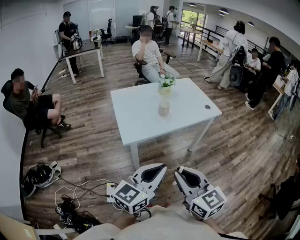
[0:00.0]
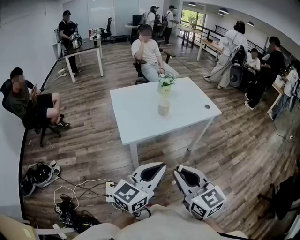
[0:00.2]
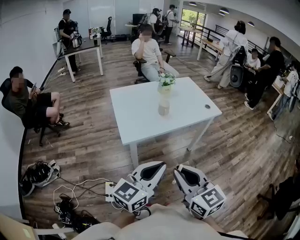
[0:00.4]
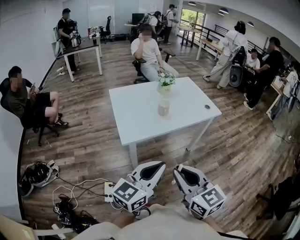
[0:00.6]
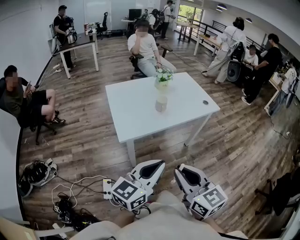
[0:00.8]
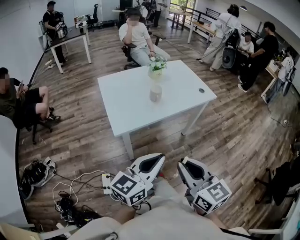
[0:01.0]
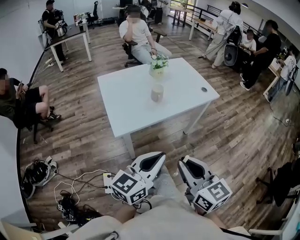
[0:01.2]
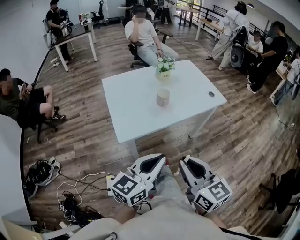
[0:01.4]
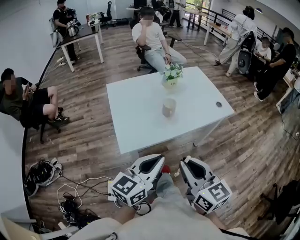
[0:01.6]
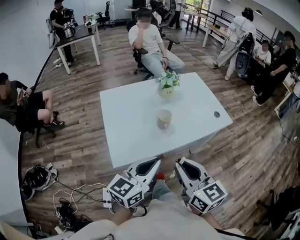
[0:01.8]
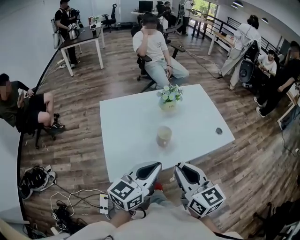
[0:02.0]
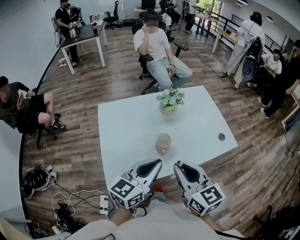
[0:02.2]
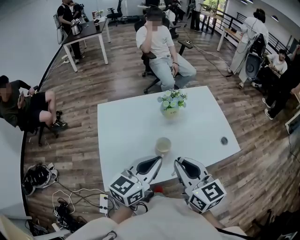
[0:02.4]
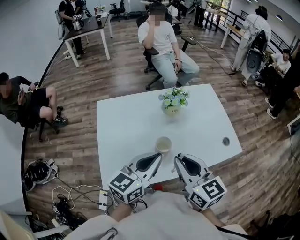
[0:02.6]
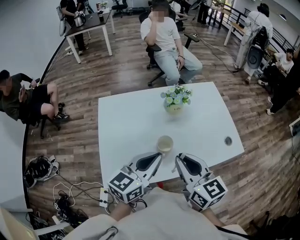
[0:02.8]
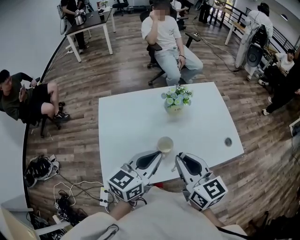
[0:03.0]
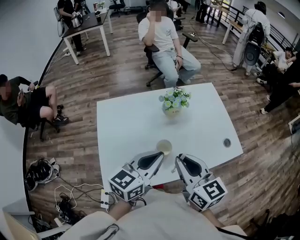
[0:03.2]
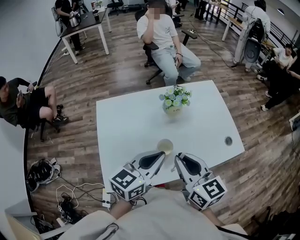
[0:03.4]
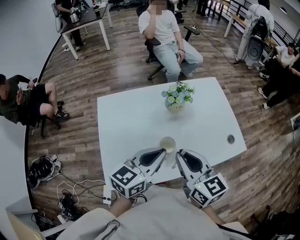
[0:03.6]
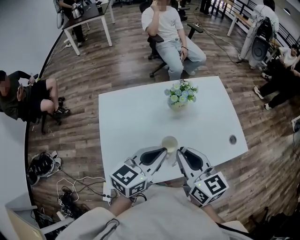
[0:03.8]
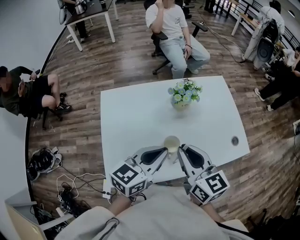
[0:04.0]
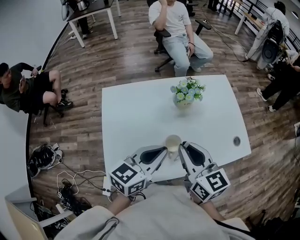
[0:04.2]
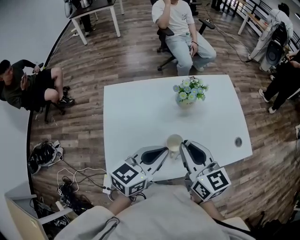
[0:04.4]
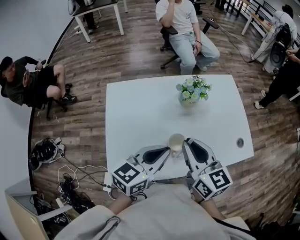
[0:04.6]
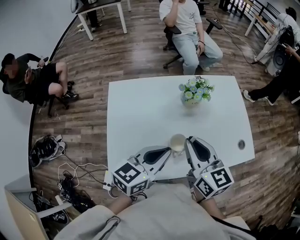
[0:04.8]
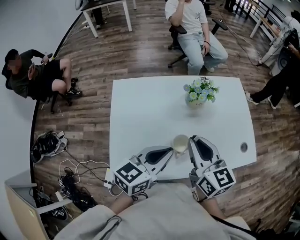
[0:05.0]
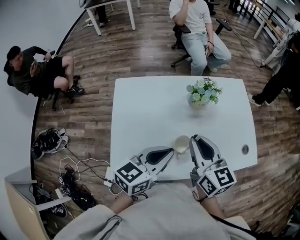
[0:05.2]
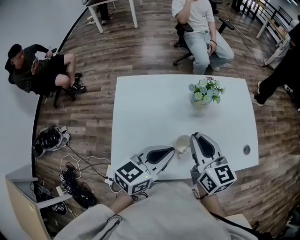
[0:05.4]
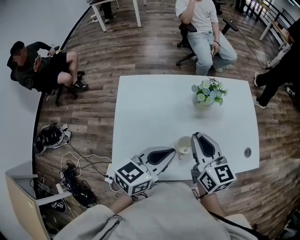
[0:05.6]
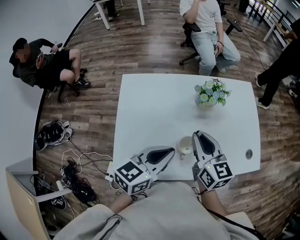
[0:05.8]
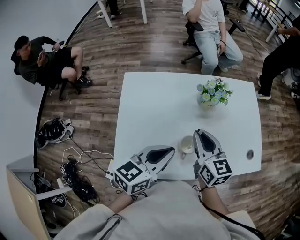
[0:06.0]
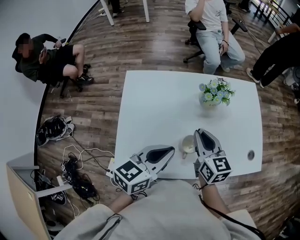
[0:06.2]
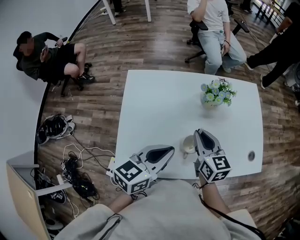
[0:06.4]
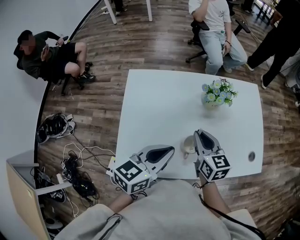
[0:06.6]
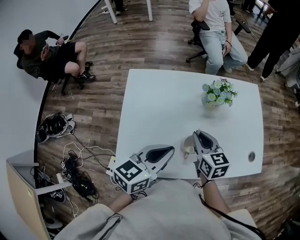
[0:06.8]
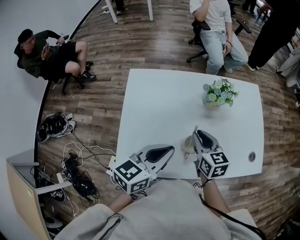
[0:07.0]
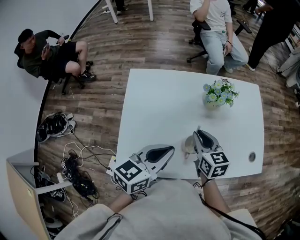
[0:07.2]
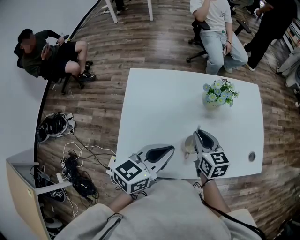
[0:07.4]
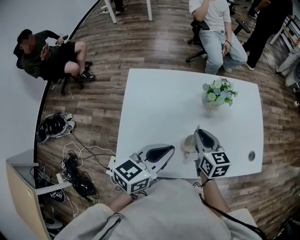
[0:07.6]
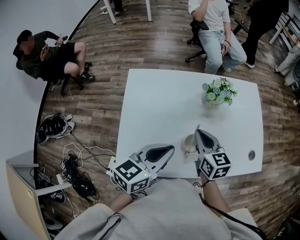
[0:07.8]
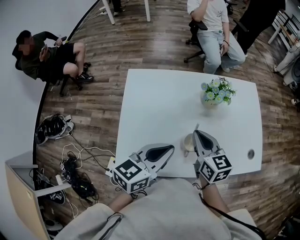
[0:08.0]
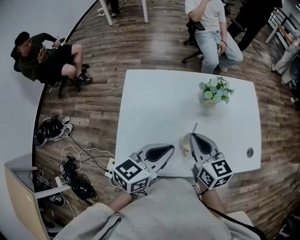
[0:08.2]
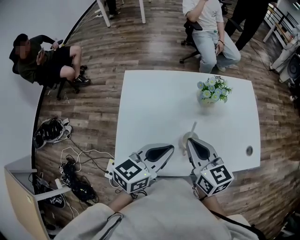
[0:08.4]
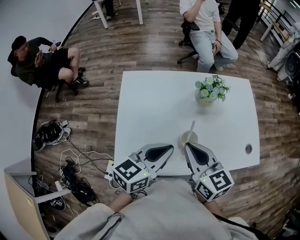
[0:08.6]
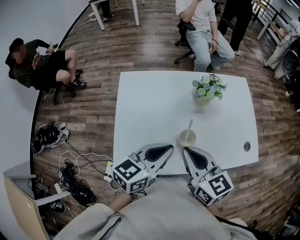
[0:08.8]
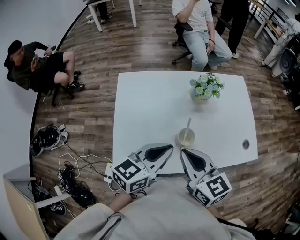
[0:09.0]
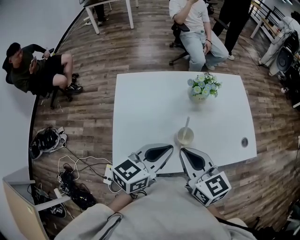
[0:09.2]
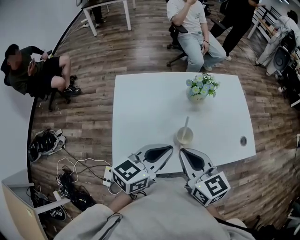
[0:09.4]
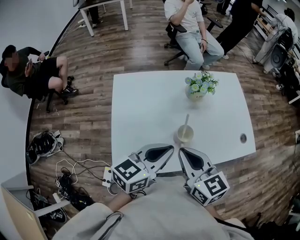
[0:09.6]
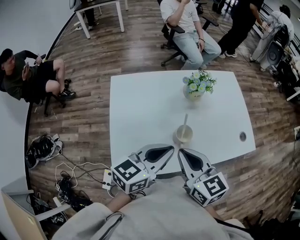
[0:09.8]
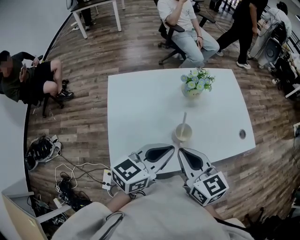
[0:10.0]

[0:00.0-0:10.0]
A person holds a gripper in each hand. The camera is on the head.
0:00.0 to 0:01.4: The grippers both shift forward by about 10 cm.
0:01.4 to 0:02.8: The grippers both shift forward by roughly 35 cm.
0:02.8 to 0:04.2: The right gripper shifts roughly 5 cm forward.
0:04.2 to 0:05.8: The right gripper is displaced forward and downward by some 10 cm.
0:05.8 to 0:07.2: The right gripper goes some 10 cm downward.
0:07.2 to 0:08.6: The right gripper shifts some 15 cm upward and backward.
0:08.6 to 0:10.0: There are only small adjustments of the grippers.

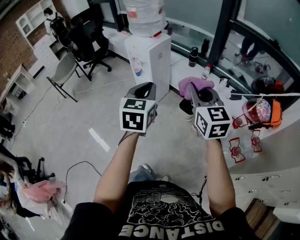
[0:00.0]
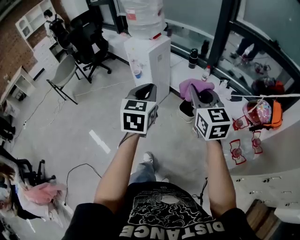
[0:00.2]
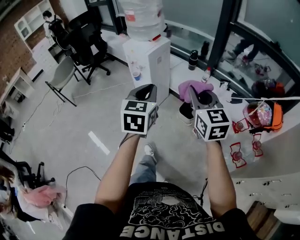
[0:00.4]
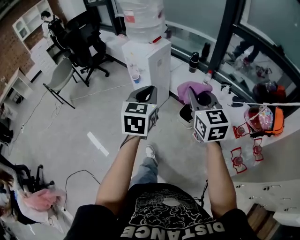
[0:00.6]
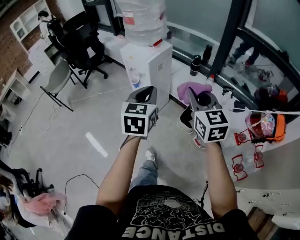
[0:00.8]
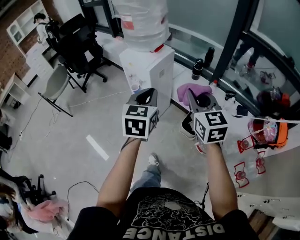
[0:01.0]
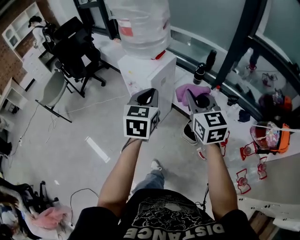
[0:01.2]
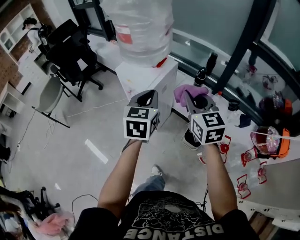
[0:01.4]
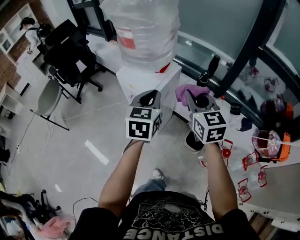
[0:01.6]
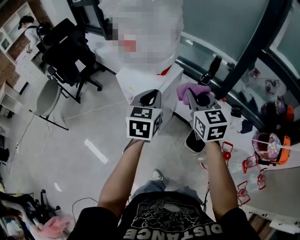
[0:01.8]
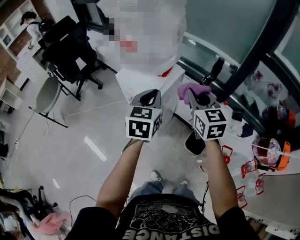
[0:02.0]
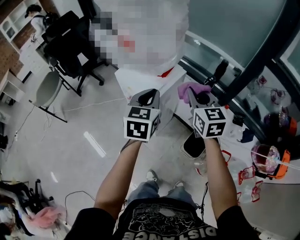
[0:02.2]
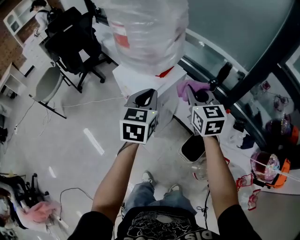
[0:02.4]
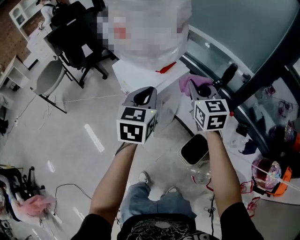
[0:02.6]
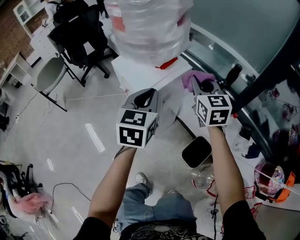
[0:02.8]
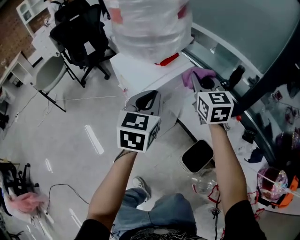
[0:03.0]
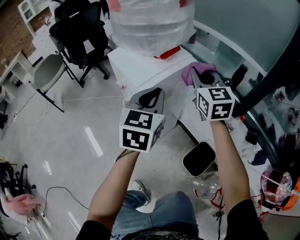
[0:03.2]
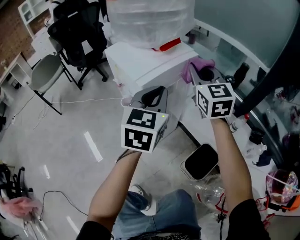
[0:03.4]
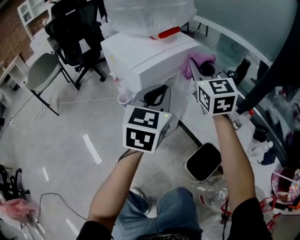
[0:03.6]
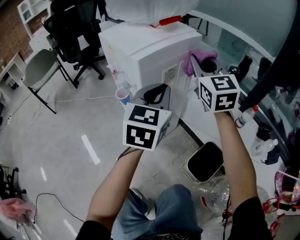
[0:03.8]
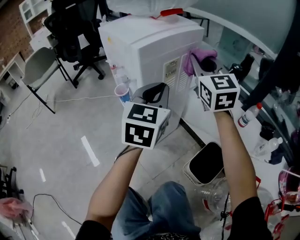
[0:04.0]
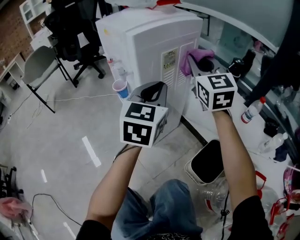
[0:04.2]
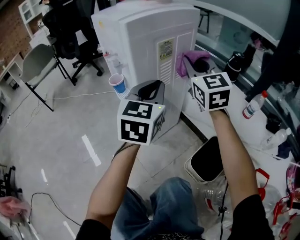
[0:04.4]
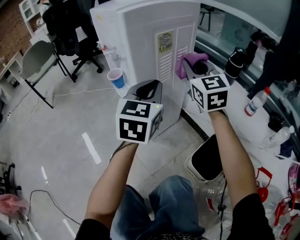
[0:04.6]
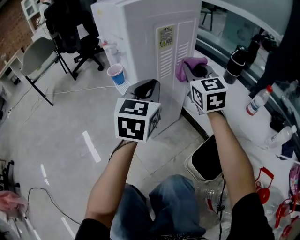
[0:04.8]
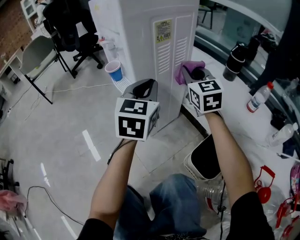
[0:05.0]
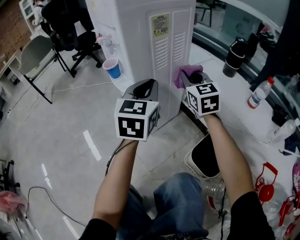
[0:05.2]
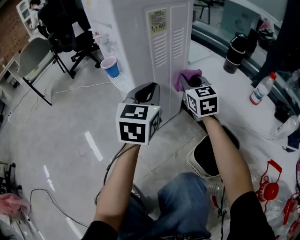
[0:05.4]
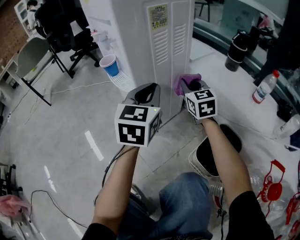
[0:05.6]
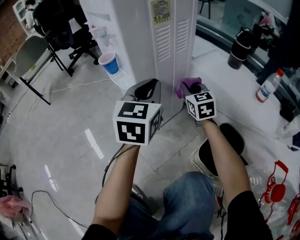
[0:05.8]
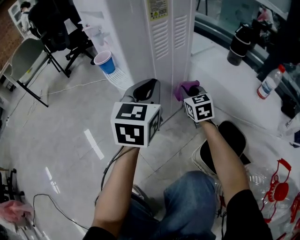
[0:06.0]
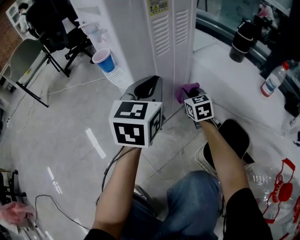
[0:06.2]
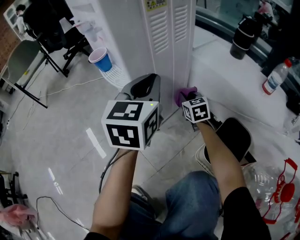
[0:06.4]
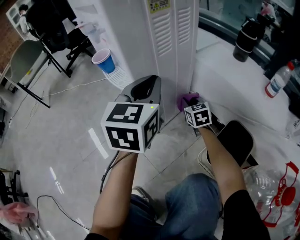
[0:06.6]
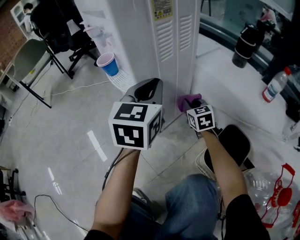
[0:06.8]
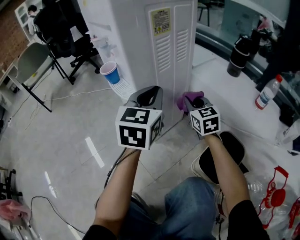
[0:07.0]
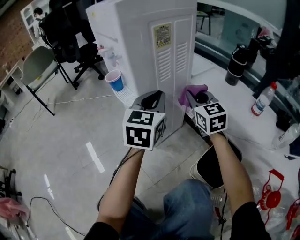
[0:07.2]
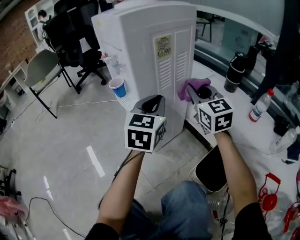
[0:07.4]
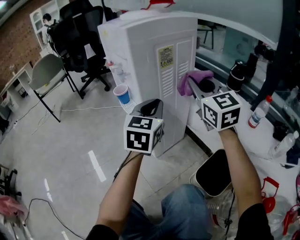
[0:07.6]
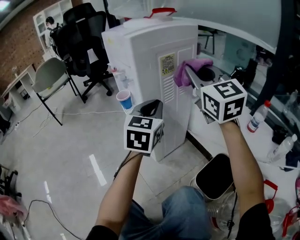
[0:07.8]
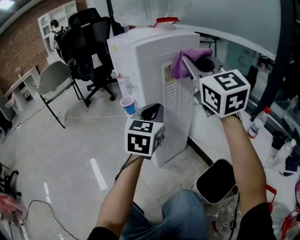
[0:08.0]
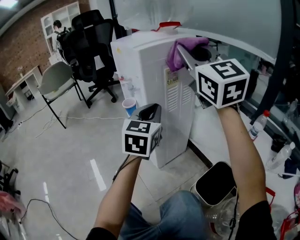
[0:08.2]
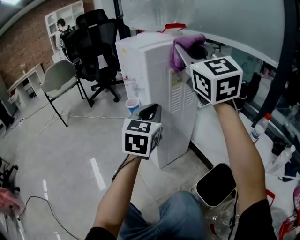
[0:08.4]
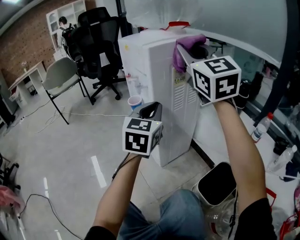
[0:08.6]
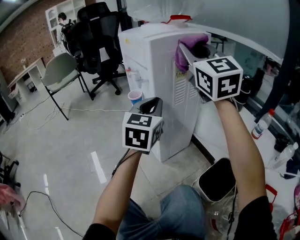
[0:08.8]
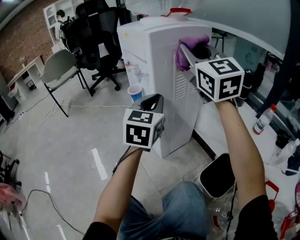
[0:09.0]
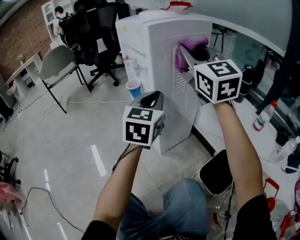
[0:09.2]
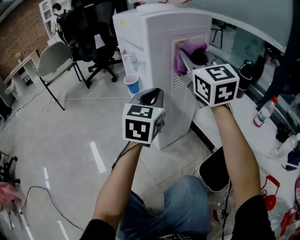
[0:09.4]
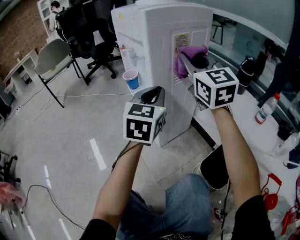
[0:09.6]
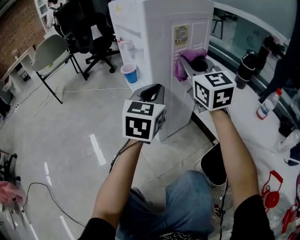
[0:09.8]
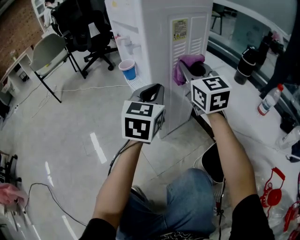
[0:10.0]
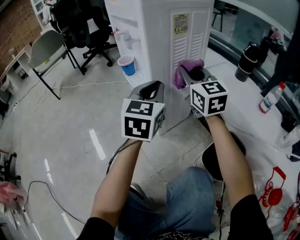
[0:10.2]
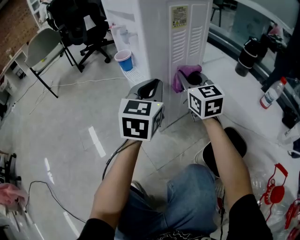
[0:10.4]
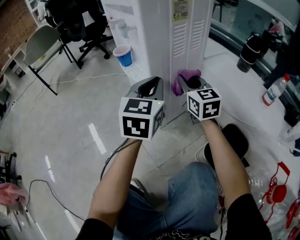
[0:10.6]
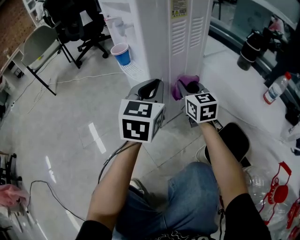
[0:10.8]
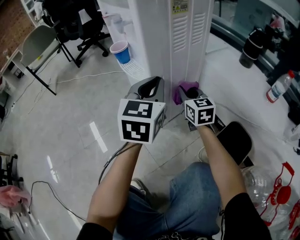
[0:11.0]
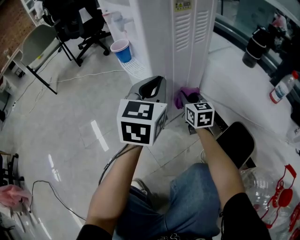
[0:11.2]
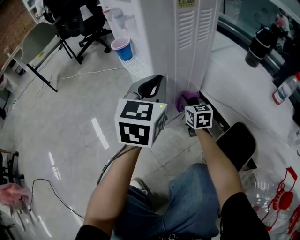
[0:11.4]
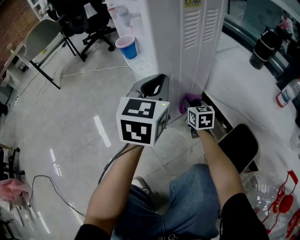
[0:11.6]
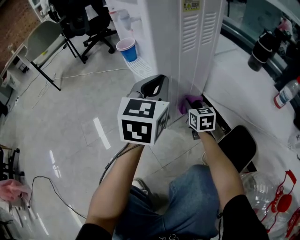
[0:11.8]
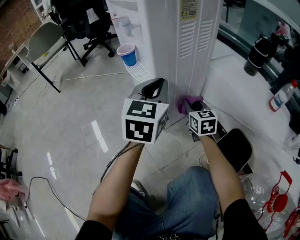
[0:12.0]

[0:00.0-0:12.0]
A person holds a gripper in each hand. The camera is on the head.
0:00.0 to 0:01.6: The two grippers go approximately 40 cm forward.
0:01.6 to 0:03.0: The right gripper shifts roughly 20 cm forward and downward, while the left gripper shifts approximately 15 cm downward and forward.
0:03.0 to 0:04.4: Both grippers move downward, some 20 cm.
0:04.4 to 0:06.0: The left gripper goes roughly 15 cm downward. Meanwhile the right gripper heads downward, covering approximately 30 cm, and rotates roughly 20 degrees.
0:06.0 to 0:07.6: The right gripper moves upward, some 30 cm, and rotates approximately 20 degrees; the left gripper shifts roughly 5 cm upward.
0:07.6 to 0:09.0: The left gripper changes place by some 5 cm. Meanwhile the right gripper is displaced upward and to the left by roughly 15 cm.
0:09.0 to 0:10.4: The right gripper is displaced downward by about 30 cm, and turns by roughly 20 degrees. The left gripper travels downward by some 10 cm.
0:10.4 to 0:12.0: The right gripper travels downward by some 20 cm.

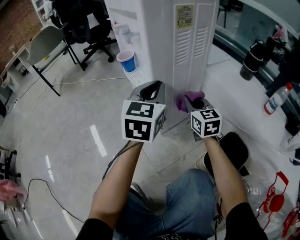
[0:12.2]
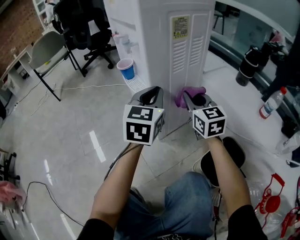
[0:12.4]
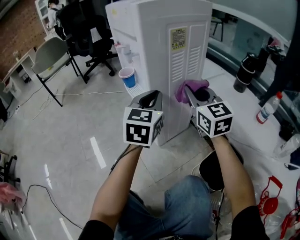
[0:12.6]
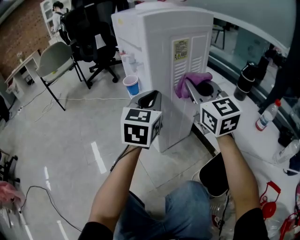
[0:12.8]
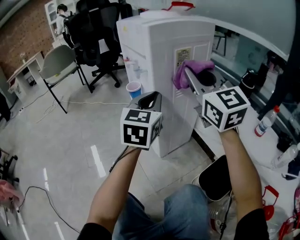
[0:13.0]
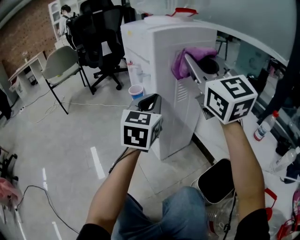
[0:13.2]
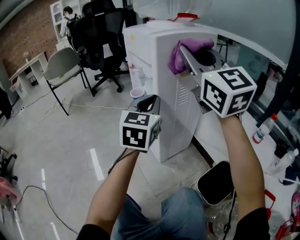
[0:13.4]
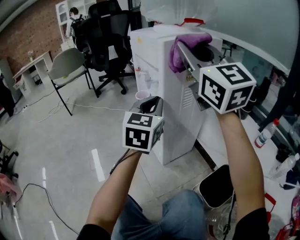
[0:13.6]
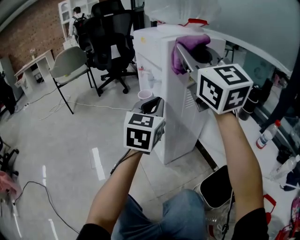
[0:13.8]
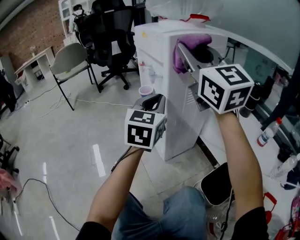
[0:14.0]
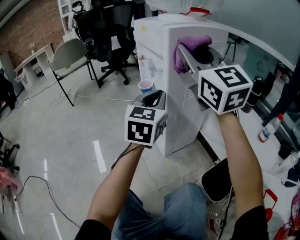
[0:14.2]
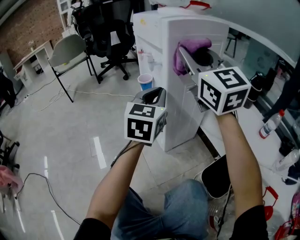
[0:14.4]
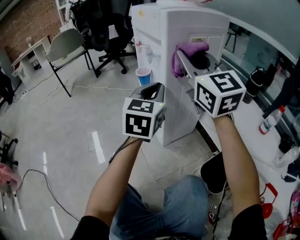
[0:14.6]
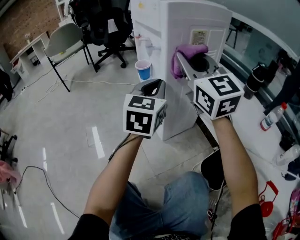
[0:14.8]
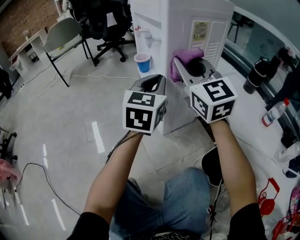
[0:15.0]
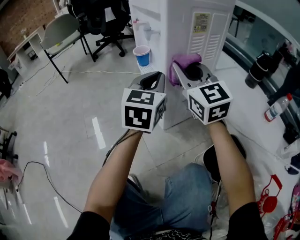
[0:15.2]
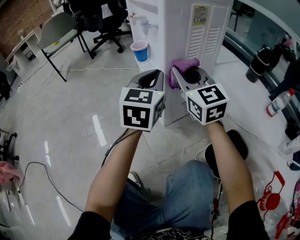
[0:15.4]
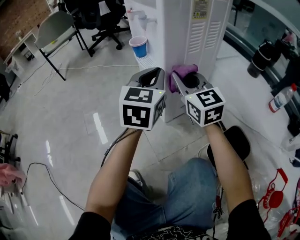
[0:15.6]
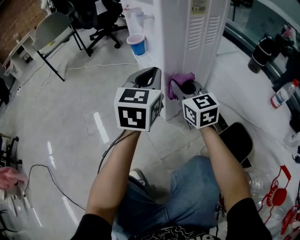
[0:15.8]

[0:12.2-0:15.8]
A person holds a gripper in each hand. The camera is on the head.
0:12.2 to 0:14.0: The right gripper goes about 40 cm upward, and angles its fingers upward, by approximately 30 degrees. The left gripper is displaced upward by some 10 cm.
0:14.0 to 0:15.8: The right gripper shifts some 35 cm downward, and rotates roughly 30 degrees. The left gripper heads downward, covering some 10 cm.
